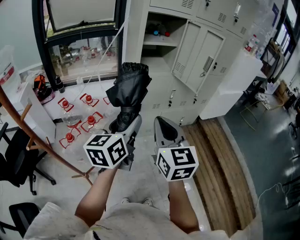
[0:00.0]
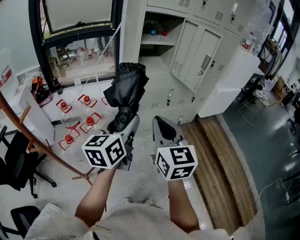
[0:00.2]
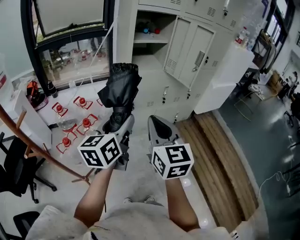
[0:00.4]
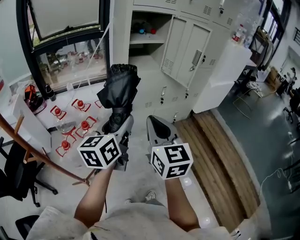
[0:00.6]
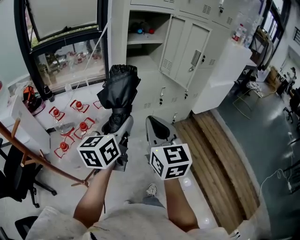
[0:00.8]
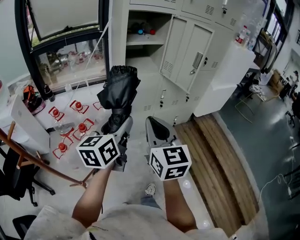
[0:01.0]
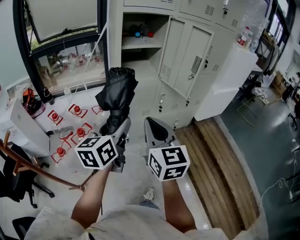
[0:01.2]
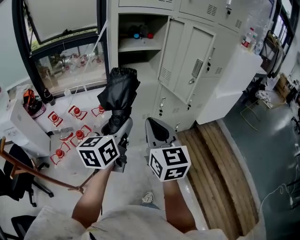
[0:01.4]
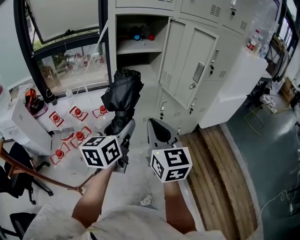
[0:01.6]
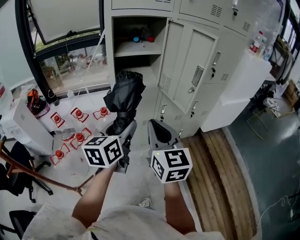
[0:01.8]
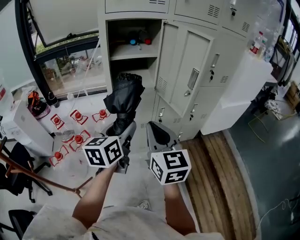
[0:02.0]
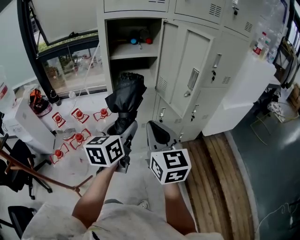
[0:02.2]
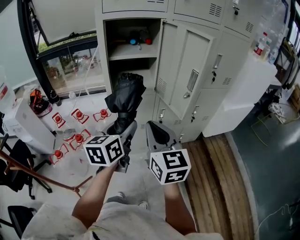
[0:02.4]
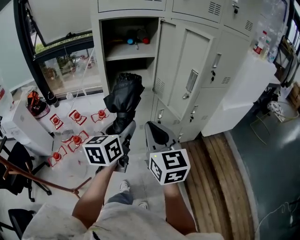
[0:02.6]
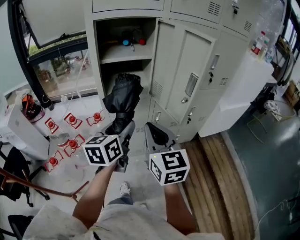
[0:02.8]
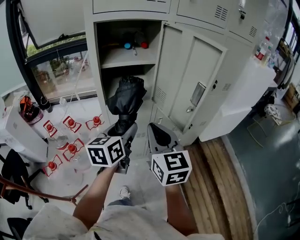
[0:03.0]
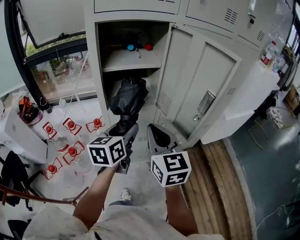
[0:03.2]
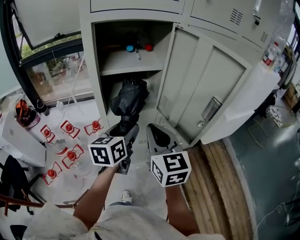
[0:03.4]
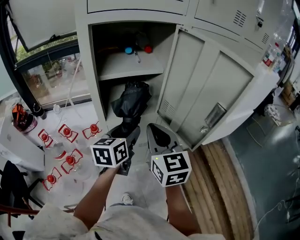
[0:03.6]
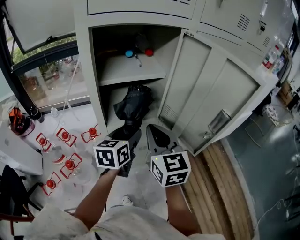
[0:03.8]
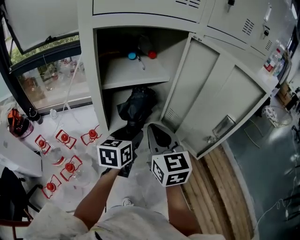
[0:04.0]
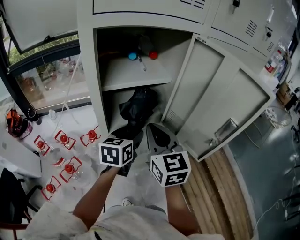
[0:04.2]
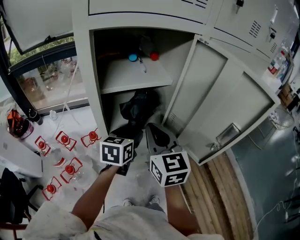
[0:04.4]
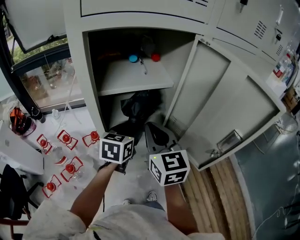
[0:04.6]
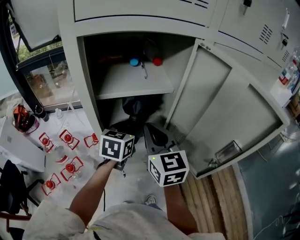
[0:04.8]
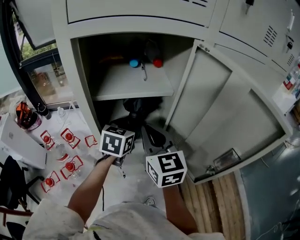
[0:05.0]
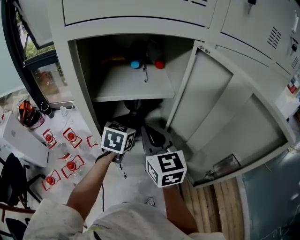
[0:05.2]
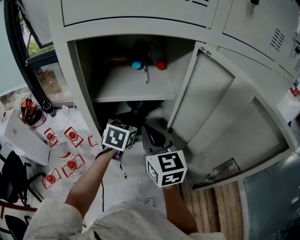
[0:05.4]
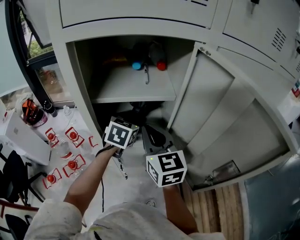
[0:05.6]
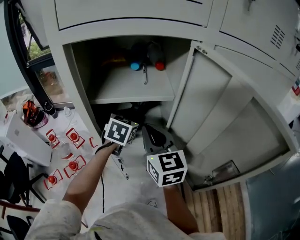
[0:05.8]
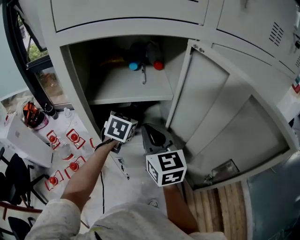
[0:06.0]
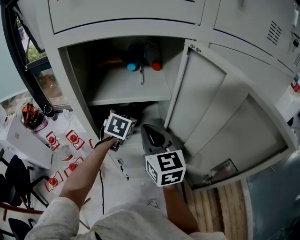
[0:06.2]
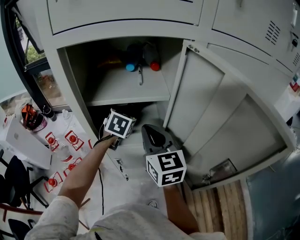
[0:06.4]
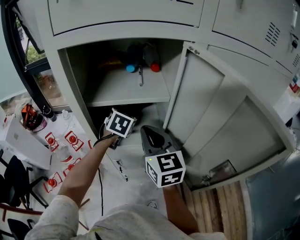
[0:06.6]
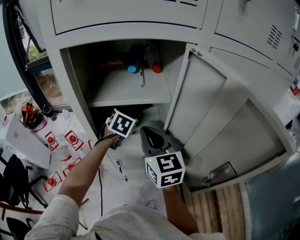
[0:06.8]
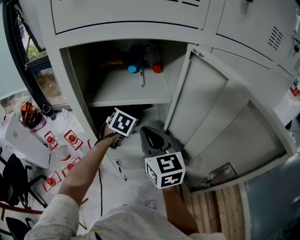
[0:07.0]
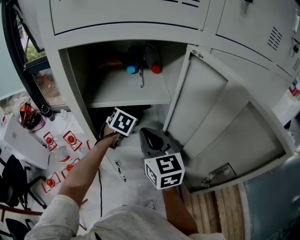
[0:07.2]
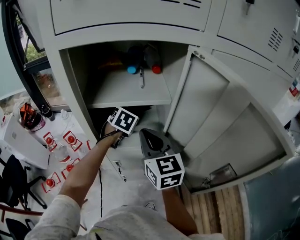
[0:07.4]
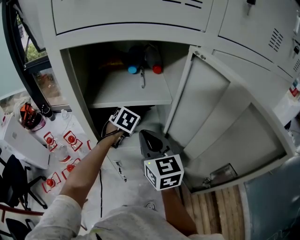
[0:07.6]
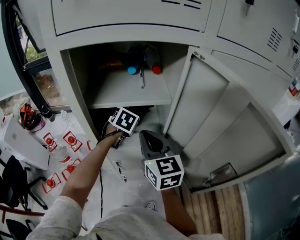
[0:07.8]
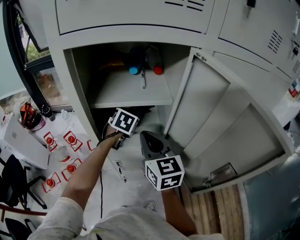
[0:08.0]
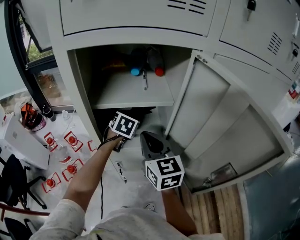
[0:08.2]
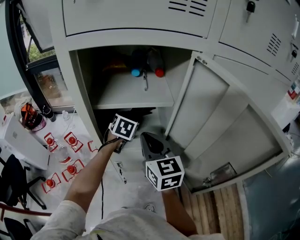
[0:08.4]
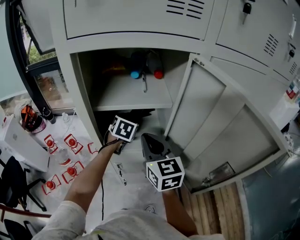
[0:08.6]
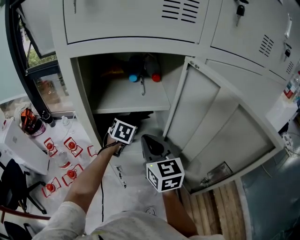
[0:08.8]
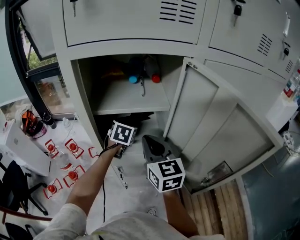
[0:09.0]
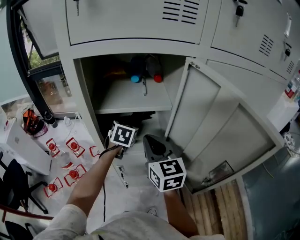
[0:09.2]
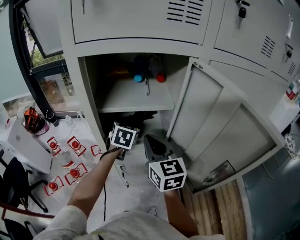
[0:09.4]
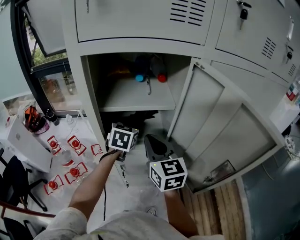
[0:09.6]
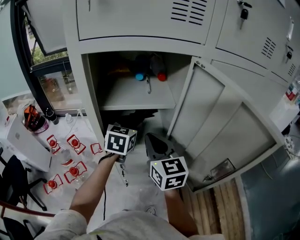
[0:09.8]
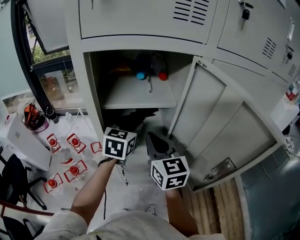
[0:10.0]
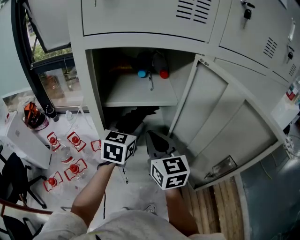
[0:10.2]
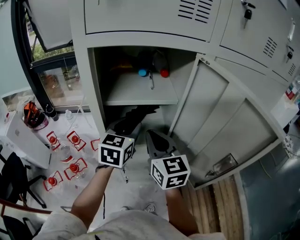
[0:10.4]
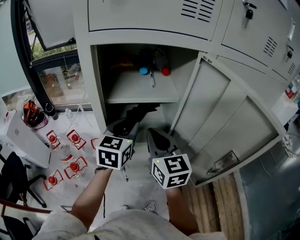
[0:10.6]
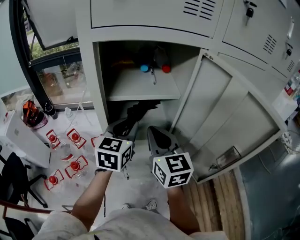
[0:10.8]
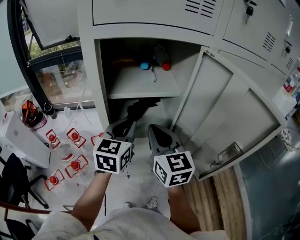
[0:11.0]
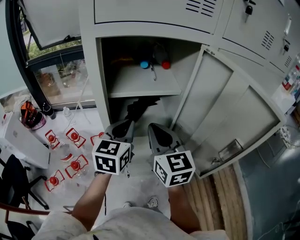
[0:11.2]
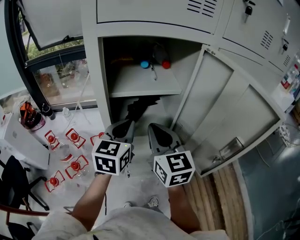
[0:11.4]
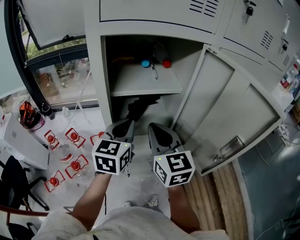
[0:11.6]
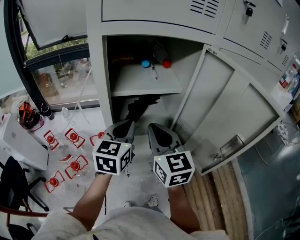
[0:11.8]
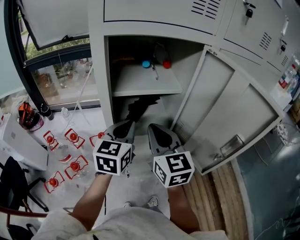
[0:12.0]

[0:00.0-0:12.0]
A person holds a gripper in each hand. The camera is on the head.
0:00.0 to 0:01.6: Both grippers travel together forward and to the right, some 20 cm.
0:01.6 to 0:03.0: The two grippers go roughly 15 cm forward and to the right.
0:03.0 to 0:04.4: The left gripper travels forward by approximately 20 cm; the right gripper goes approximately 20 cm forward and to the left.
0:04.4 to 0:06.0: The right gripper is displaced forward by roughly 5 cm. Meanwhile the left gripper is displaced forward by roughly 15 cm, and rotates roughly 20 degrees.
0:06.0 to 0:07.6: The left gripper changes place by approximately 5 cm.
0:07.6 to 0:09.0: The grippers move only a little.
0:09.0 to 0:10.4: The left gripper goes about 15 cm backward and upward, and turns by about 20 degrees.
0:10.4 to 0:12.0: The left gripper heads backward, covering roughly 5 cm, and closes up.

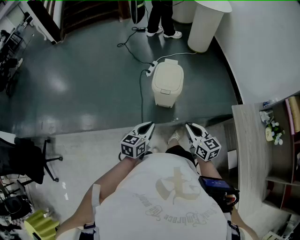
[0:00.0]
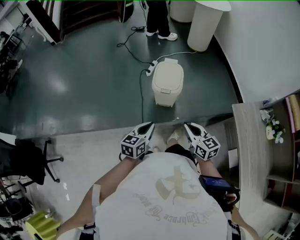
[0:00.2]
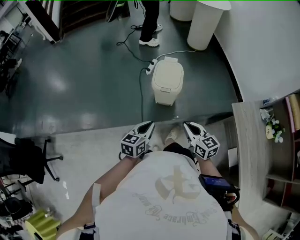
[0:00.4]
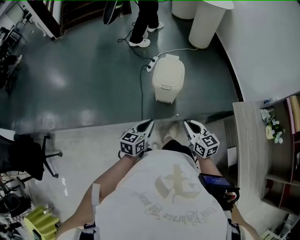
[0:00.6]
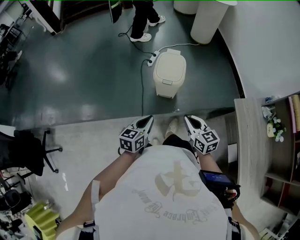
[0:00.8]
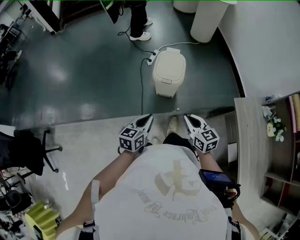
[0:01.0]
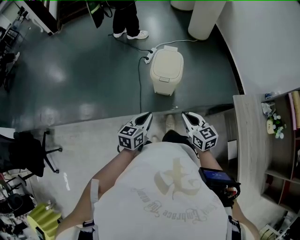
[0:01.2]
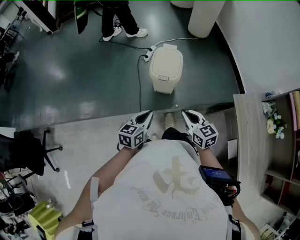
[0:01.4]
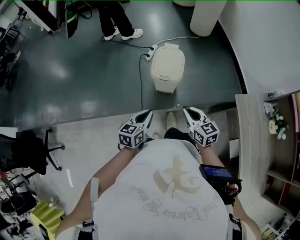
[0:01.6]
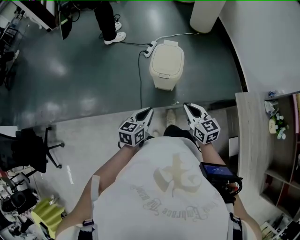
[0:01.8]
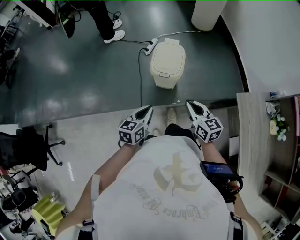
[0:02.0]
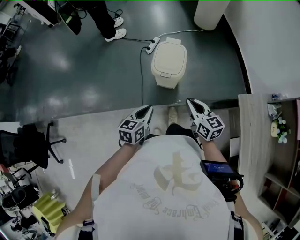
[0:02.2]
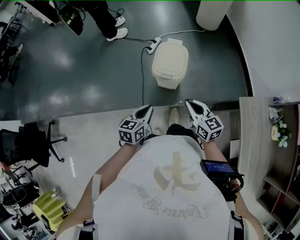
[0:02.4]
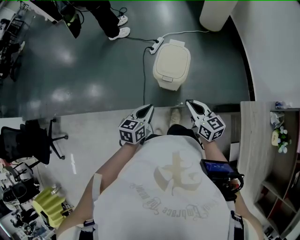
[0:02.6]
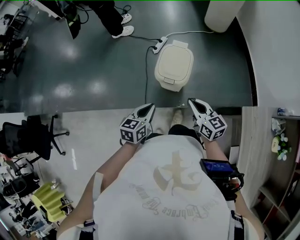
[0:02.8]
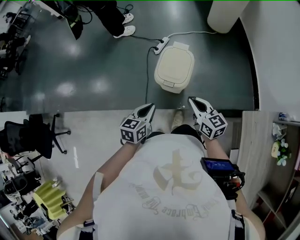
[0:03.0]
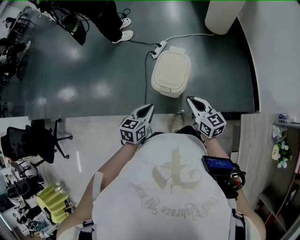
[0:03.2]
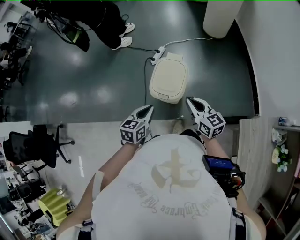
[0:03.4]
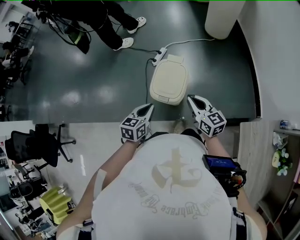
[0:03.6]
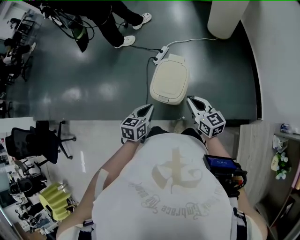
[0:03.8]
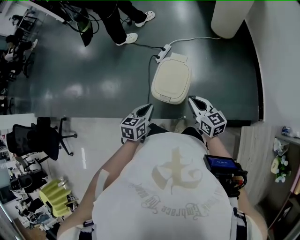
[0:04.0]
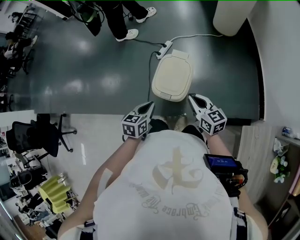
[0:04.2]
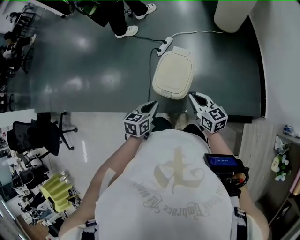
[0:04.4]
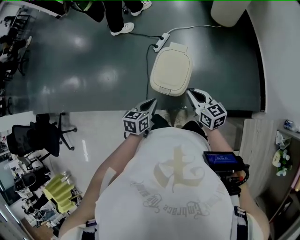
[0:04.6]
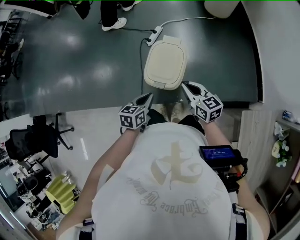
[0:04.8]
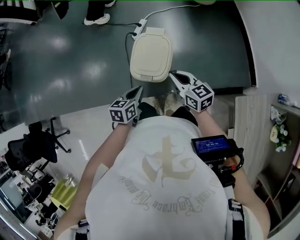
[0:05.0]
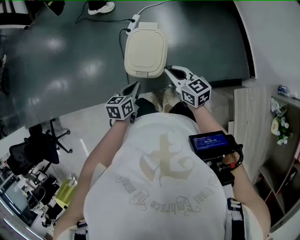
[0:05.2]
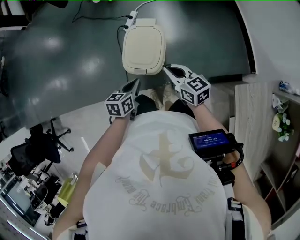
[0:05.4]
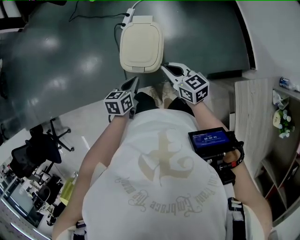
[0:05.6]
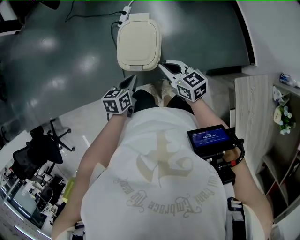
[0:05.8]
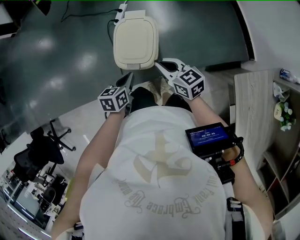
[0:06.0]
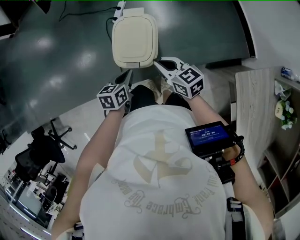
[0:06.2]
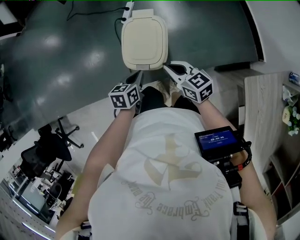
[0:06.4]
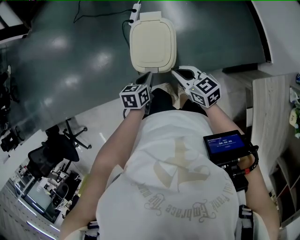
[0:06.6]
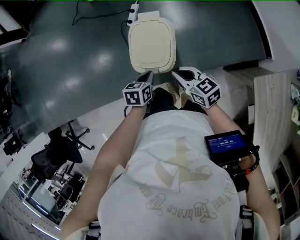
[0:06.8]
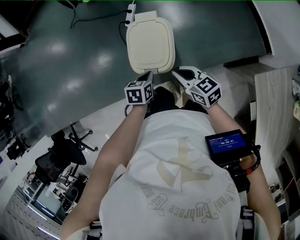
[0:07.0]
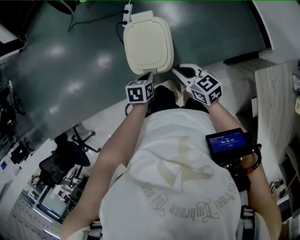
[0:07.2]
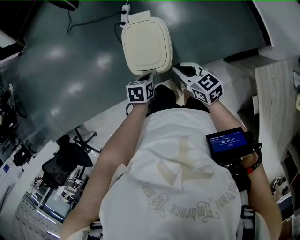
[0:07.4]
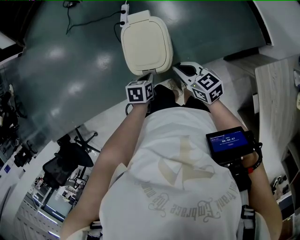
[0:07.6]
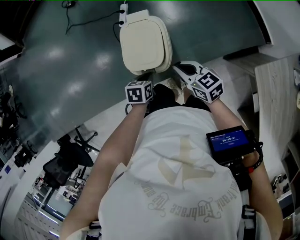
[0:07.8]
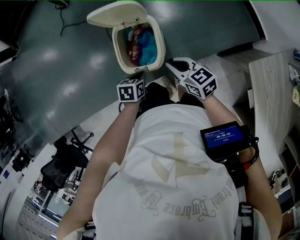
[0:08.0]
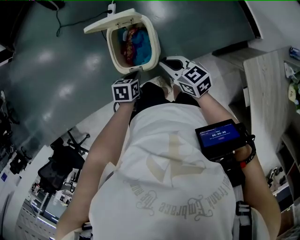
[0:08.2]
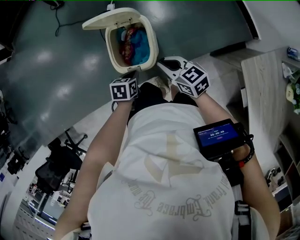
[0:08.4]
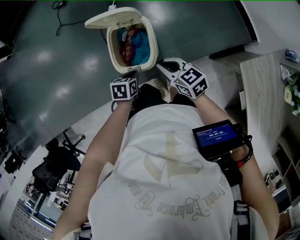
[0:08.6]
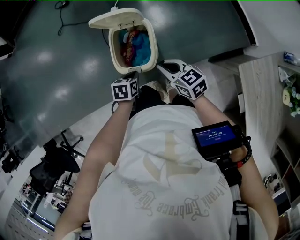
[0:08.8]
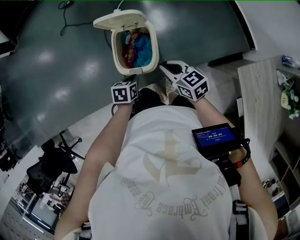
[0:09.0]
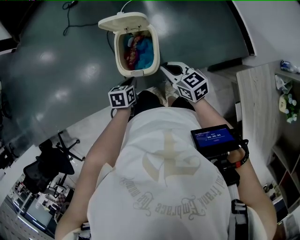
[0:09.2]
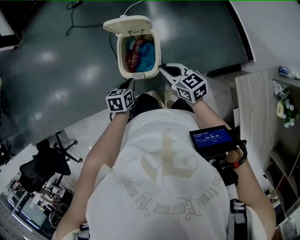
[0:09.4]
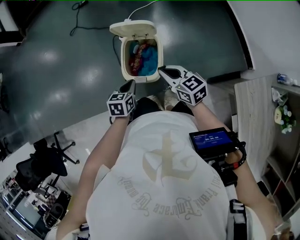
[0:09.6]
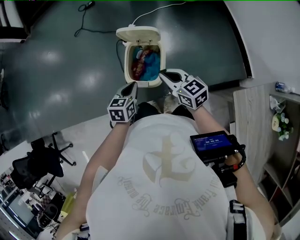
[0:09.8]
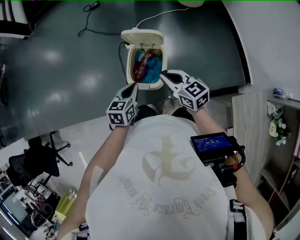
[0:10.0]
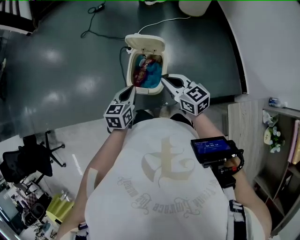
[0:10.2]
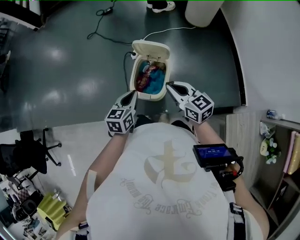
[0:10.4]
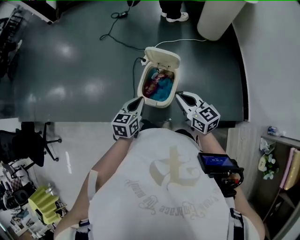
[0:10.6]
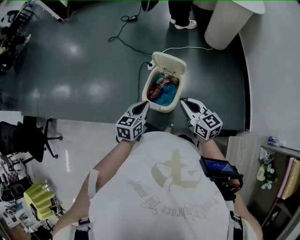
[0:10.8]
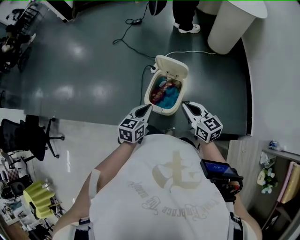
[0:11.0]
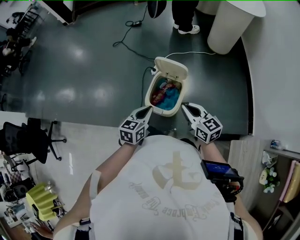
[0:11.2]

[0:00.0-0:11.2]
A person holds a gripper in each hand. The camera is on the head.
0:00.0 to 0:01.6: The grippers stay close to where they were, moving slightly.
0:01.6 to 0:03.2: Both grippers travel together forward, some 15 cm.
0:03.2 to 0:04.8: The left gripper goes about 10 cm downward and forward. The right gripper travels forward and downward by about 10 cm.
0:04.8 to 0:06.4: Both grippers travel together downward, some 5 cm.
0:06.4 to 0:08.0: The left gripper goes about 5 cm downward, and swivels some 20 degrees.
0:08.0 to 0:09.6: The two grippers go some 5 cm upward. The left gripper changes its angle by about 20 degrees.
0:09.6 to 0:11.2: The left gripper shifts approximately 10 cm upward, and turns by roughly 20 degrees, while the right gripper shifts some 10 cm upward.

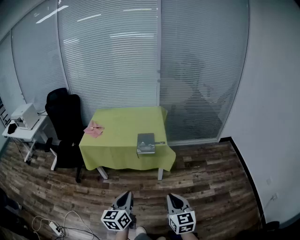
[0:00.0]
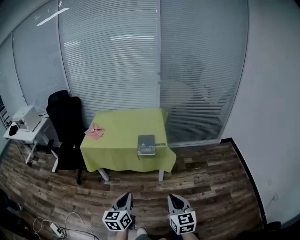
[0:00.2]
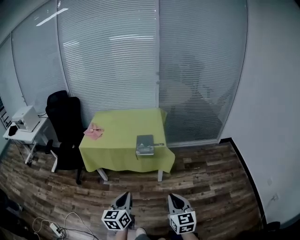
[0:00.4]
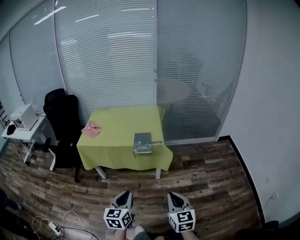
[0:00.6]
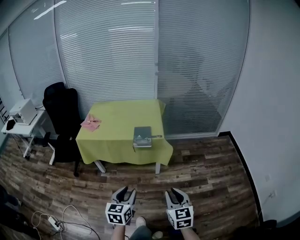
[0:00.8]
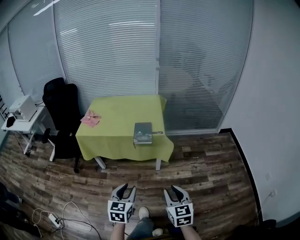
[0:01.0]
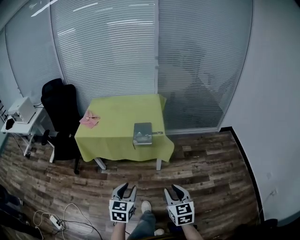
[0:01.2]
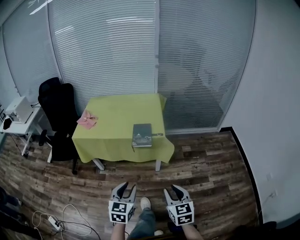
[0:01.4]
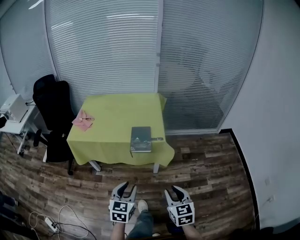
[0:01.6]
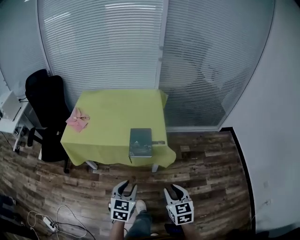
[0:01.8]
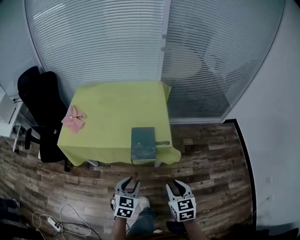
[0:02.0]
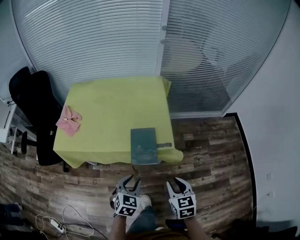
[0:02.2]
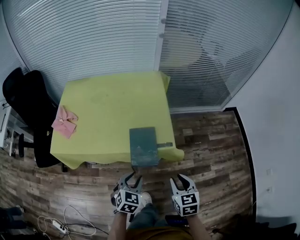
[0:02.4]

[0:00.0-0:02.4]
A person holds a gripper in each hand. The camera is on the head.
0:00.0 to 0:01.2: The right gripper shifts by some 5 cm, and opens, while the left gripper moves some 5 cm, rotates roughly 30 degrees, and opens up.
0:01.2 to 0:02.4: Both grippers move forward, approximately 30 cm. The left gripper swivels roughly 20 degrees.
